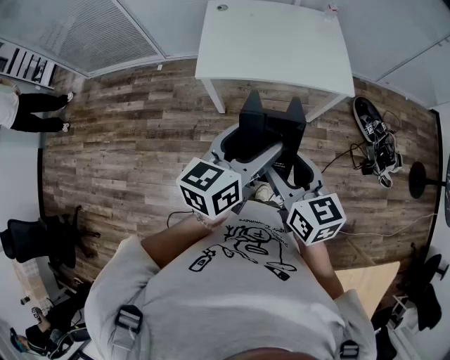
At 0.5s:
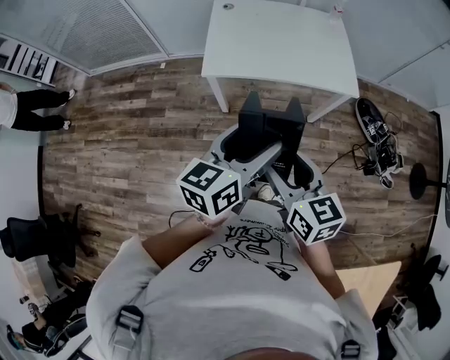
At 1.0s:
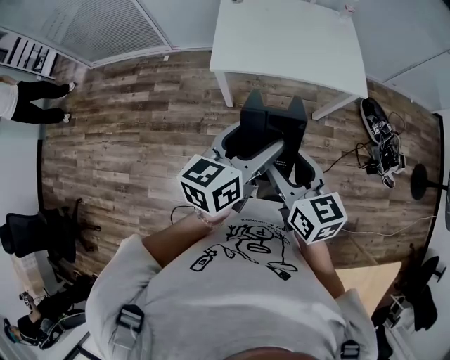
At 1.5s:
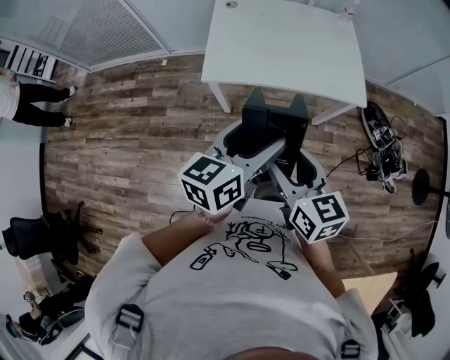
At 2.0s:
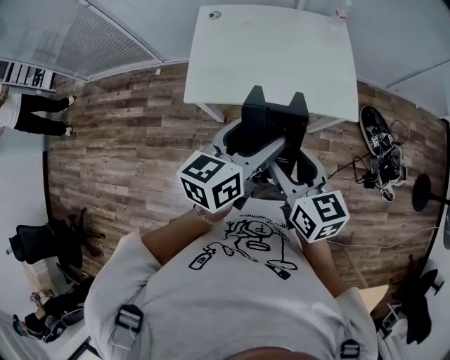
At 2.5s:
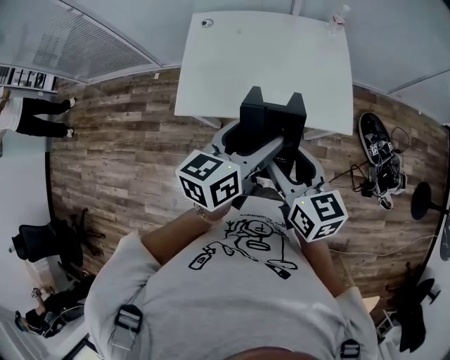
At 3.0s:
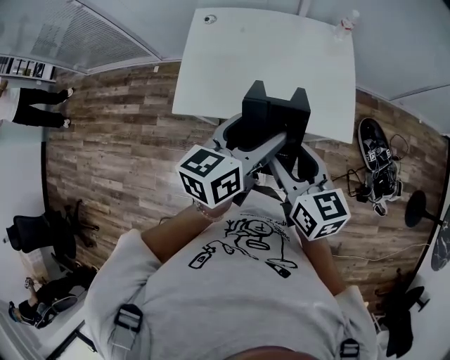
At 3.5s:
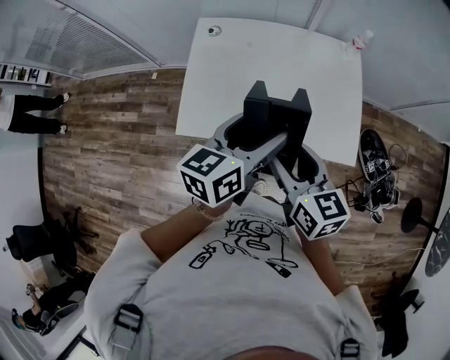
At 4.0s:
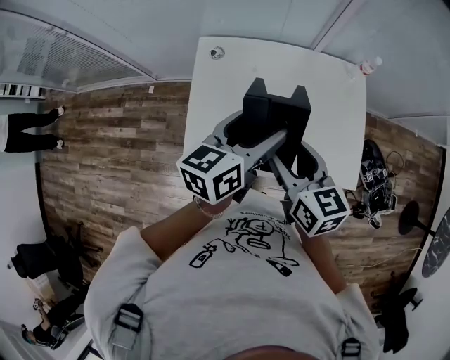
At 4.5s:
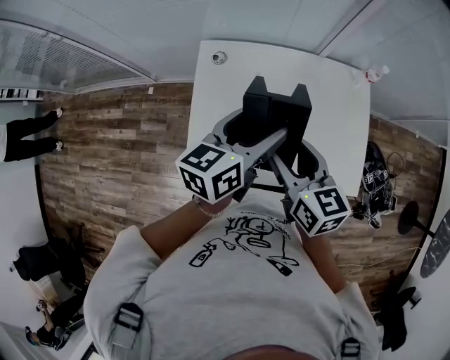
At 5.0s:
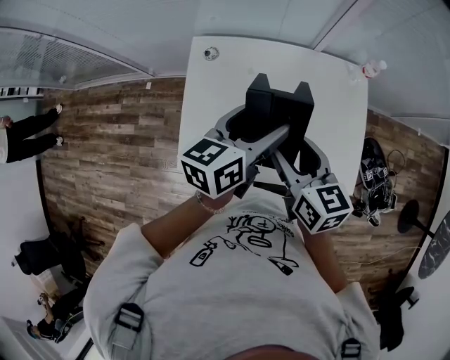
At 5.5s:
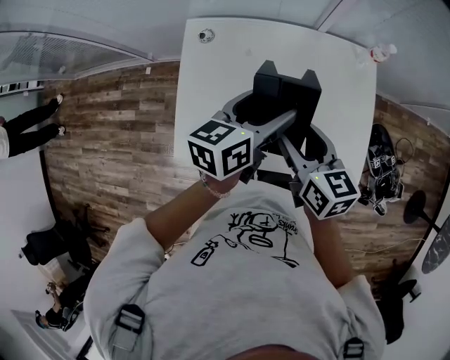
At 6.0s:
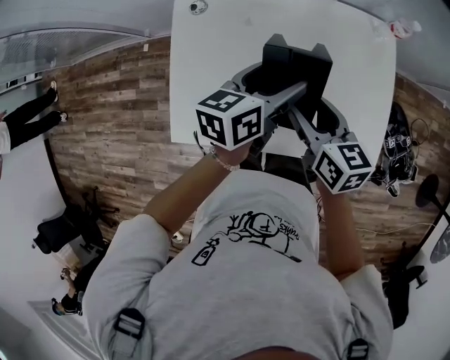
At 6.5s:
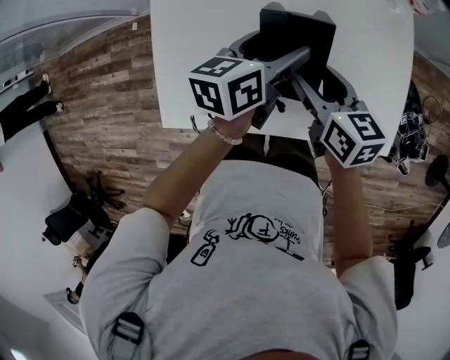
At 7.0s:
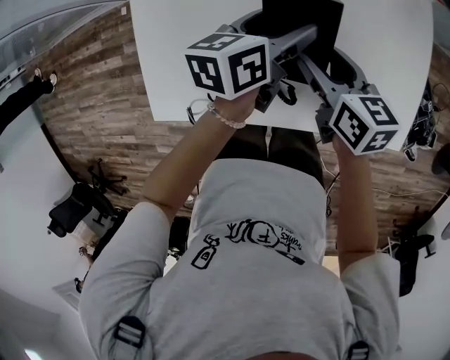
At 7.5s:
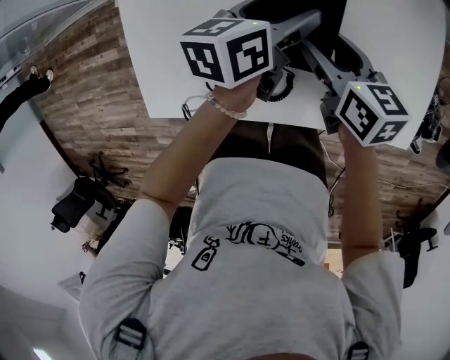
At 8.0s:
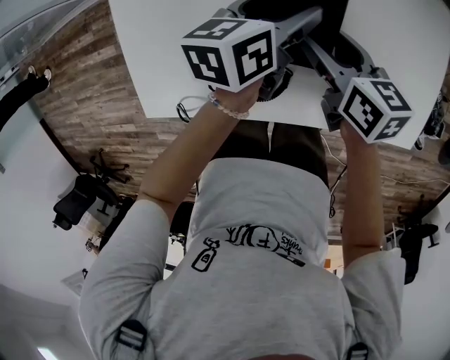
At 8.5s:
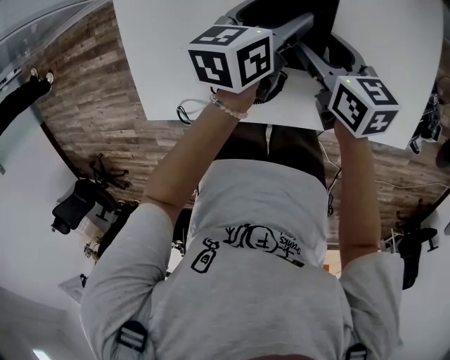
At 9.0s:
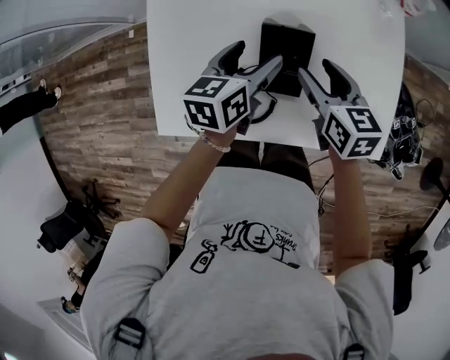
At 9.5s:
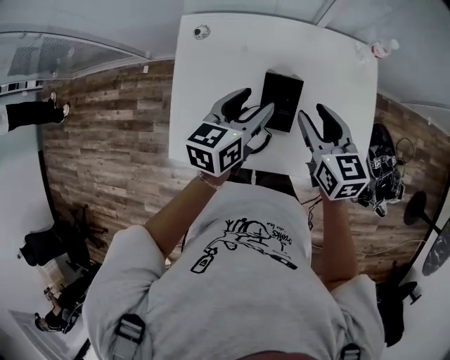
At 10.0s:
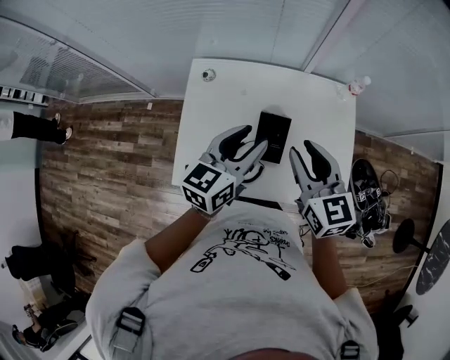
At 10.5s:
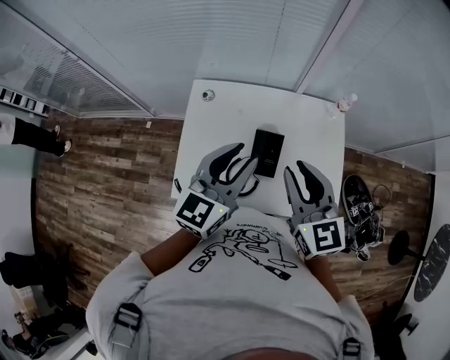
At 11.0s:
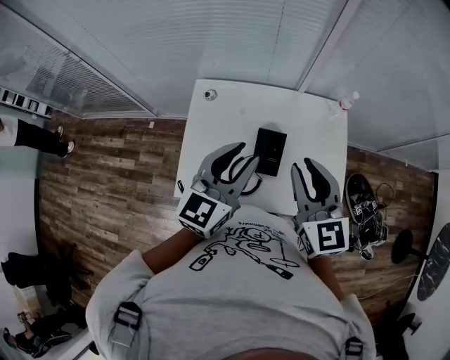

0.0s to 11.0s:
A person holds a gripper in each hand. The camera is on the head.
0.0s to 2.0s: The grippers both shift forward by some 20 cm.
2.0s to 3.5s: Both grippers move forward, some 20 cm.
3.5s to 5.5s: Both grippers move forward, some 20 cm.
5.5s to 7.5s: Both grippers travel together downward, some 25 cm.
7.5s to 9.0s: Both grippers move upward, roughly 10 cm.
9.0s to 11.0s: Both grippers travel together upward, roughly 30 cm. The right gripper rotates approximately 40 degrees, and closes its fingers. Meanwhile the left gripper turns by about 40 degrees, and closes.

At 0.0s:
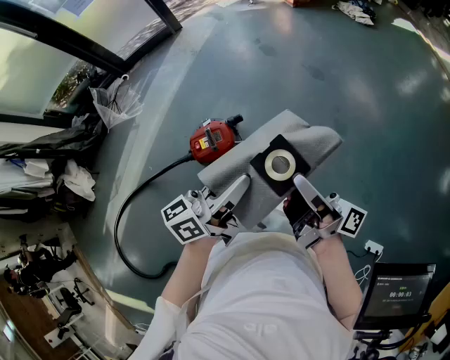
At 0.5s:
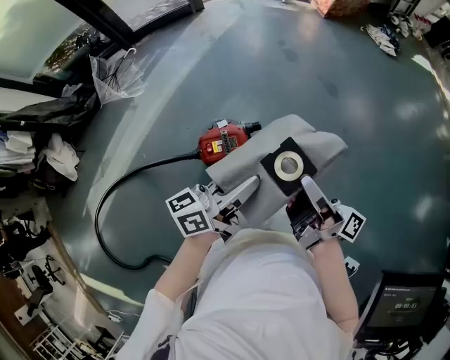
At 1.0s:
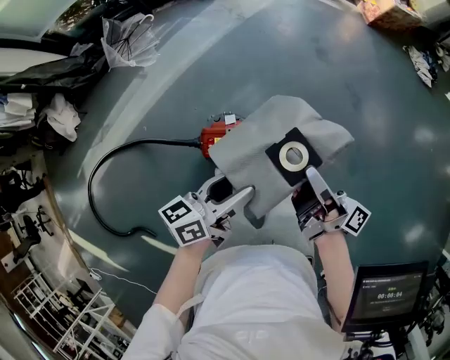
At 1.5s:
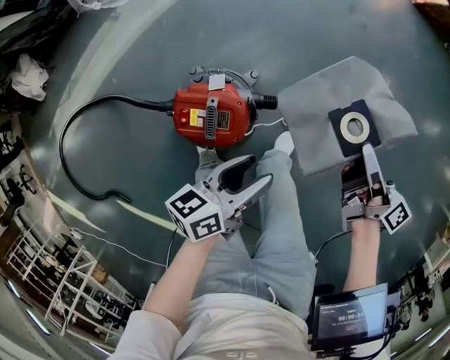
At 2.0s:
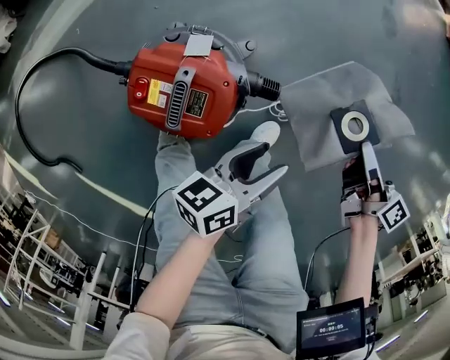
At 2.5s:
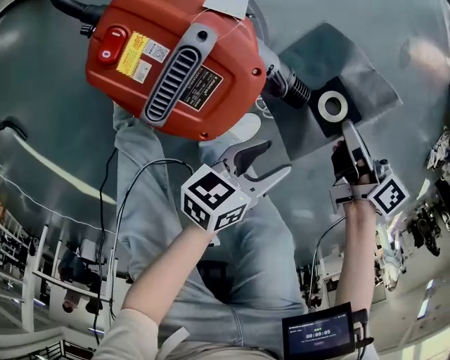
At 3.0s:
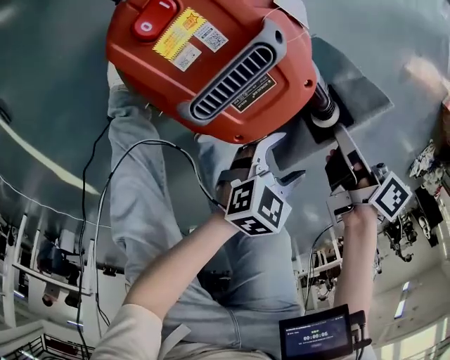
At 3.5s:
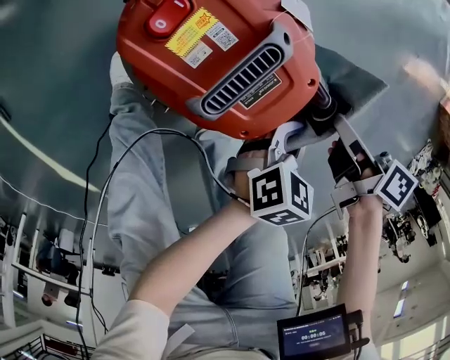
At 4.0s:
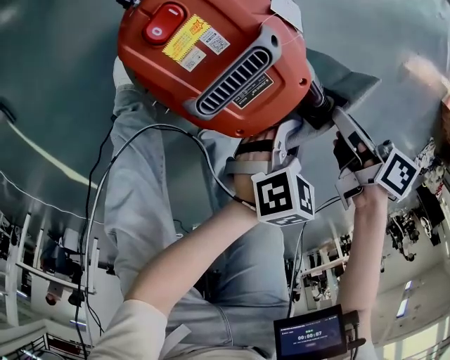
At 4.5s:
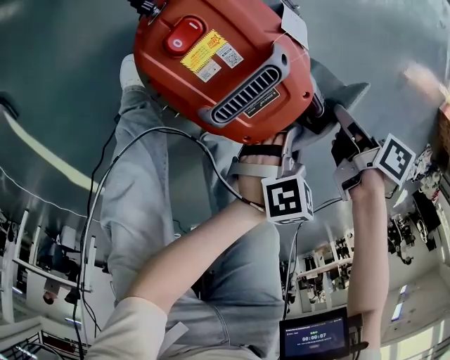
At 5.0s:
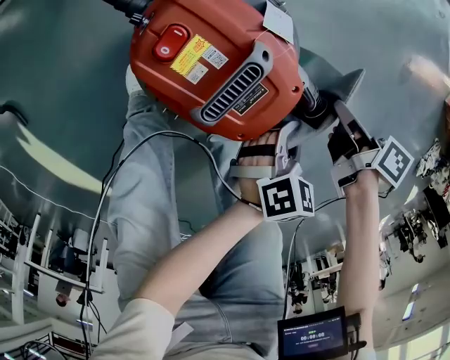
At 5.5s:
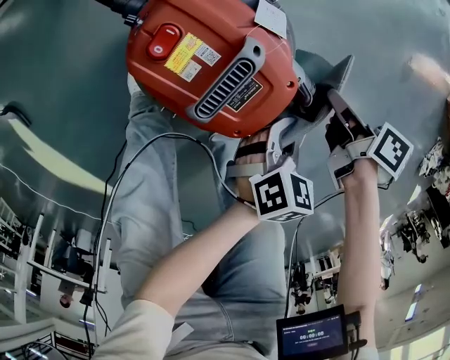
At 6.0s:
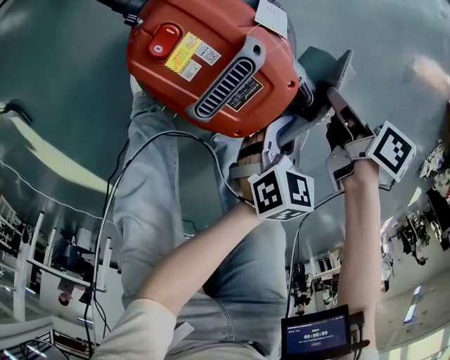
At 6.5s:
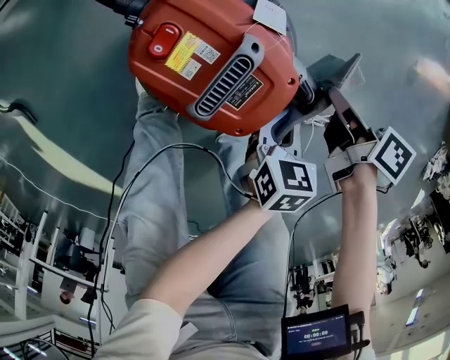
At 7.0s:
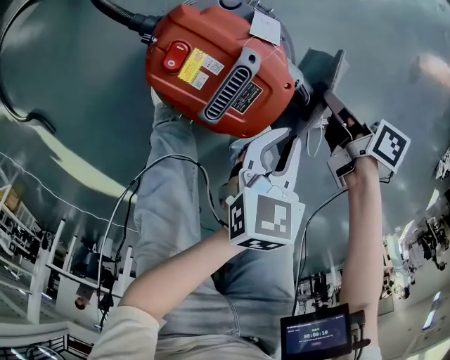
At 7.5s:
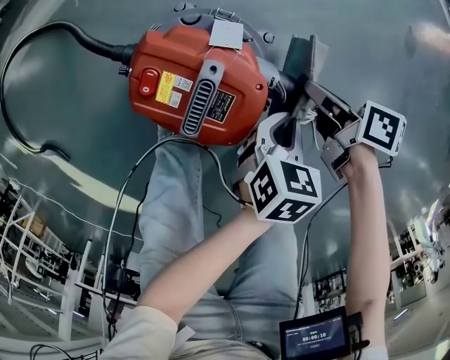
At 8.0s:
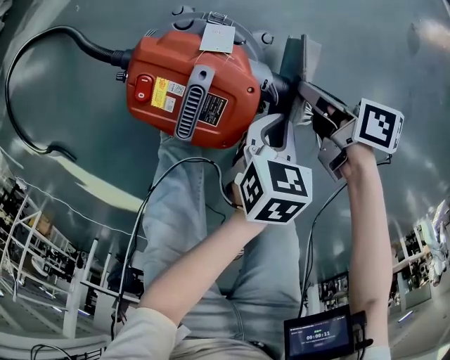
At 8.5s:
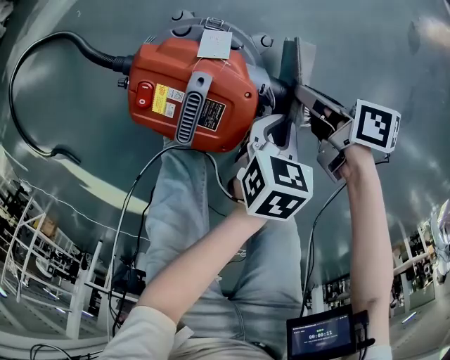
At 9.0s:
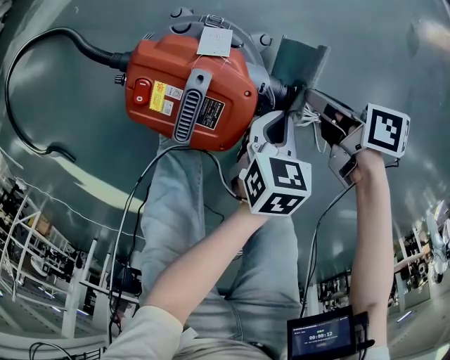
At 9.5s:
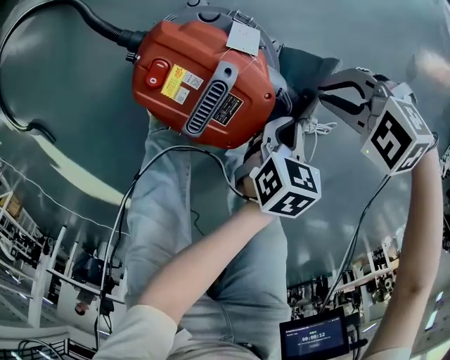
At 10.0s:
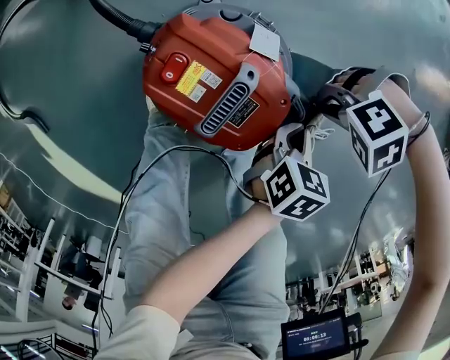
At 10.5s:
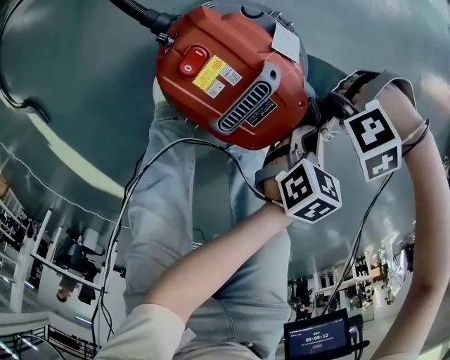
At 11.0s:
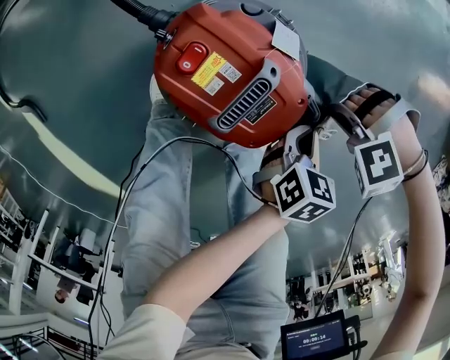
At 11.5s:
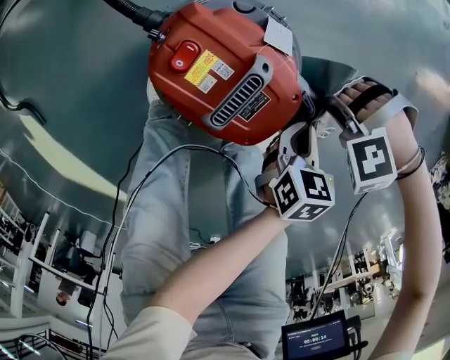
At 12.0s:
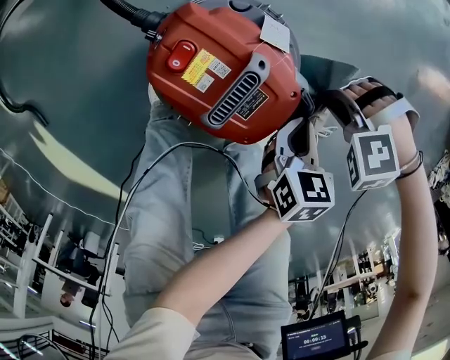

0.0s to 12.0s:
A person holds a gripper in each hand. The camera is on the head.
0.0s to 2.0s: The left gripper heads downward, covering some 60 cm, rotates approximately 40 degrees, and opens up.
2.0s to 4.0s: The left gripper heads downward, covering roughly 15 cm, angles its fingers downward, by some 30 degrees, and closes up.
6.0s to 8.0s: The left gripper reaches approximately 10 cm upward, then returns.

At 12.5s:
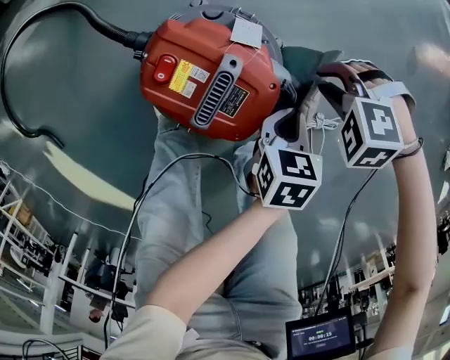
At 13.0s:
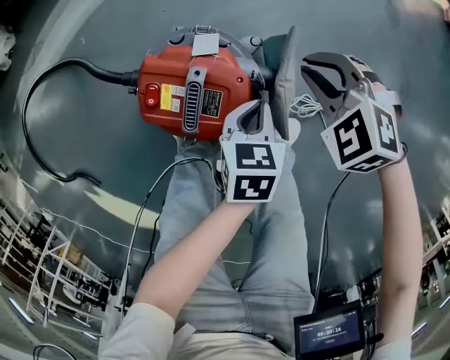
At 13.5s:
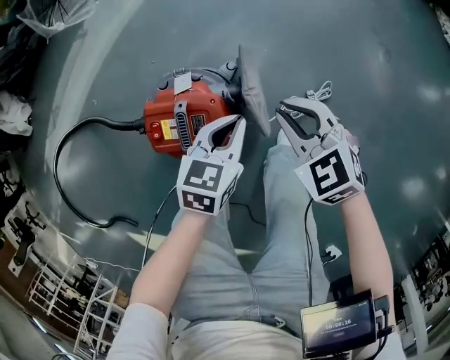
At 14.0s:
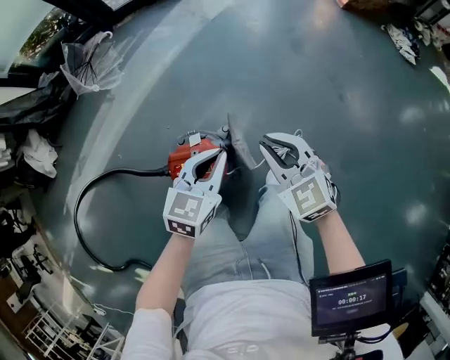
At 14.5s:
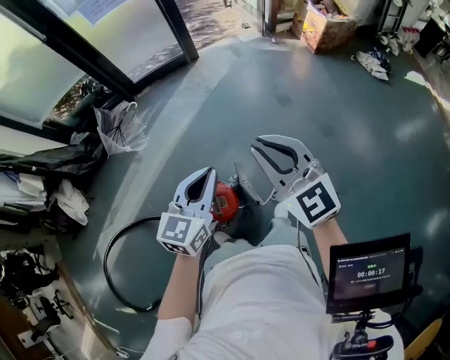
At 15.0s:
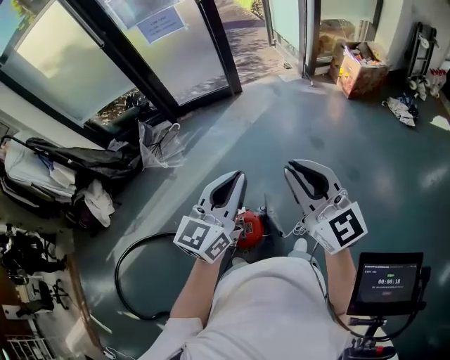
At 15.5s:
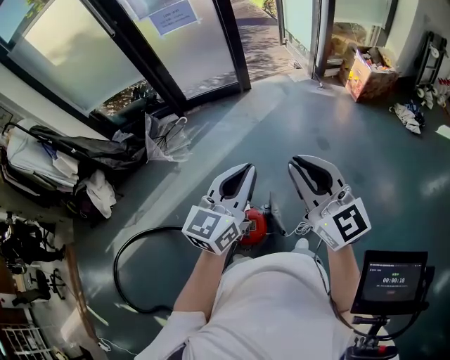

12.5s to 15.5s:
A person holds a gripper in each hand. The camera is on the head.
12.5s to 14.0s: The left gripper is displaced upward by some 40 cm, and twists approximately 50 degrees clockwise, seen from behind.
14.0s to 15.5s: The left gripper moves upward, roughly 40 cm, and changes its angle by about 30 degrees.

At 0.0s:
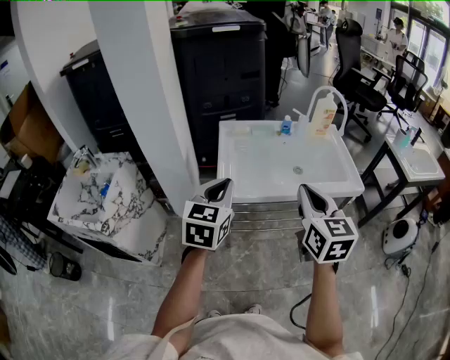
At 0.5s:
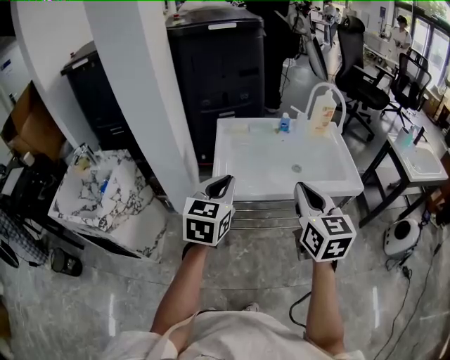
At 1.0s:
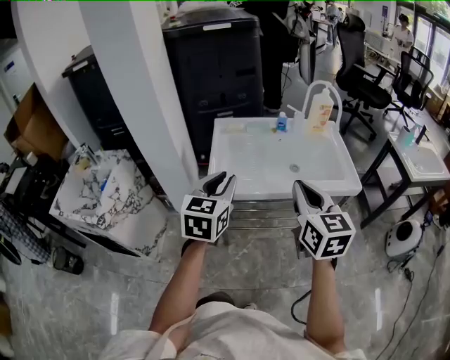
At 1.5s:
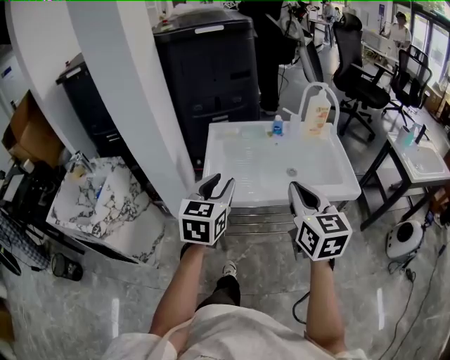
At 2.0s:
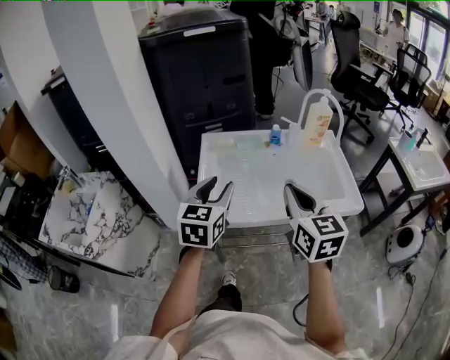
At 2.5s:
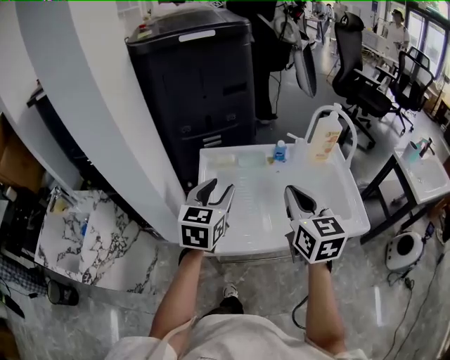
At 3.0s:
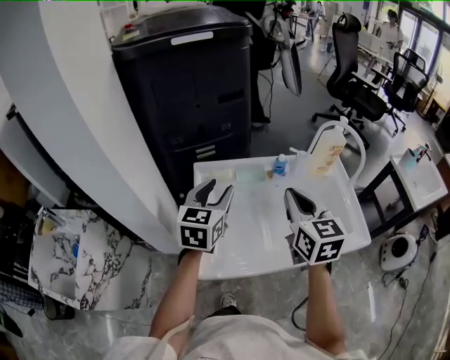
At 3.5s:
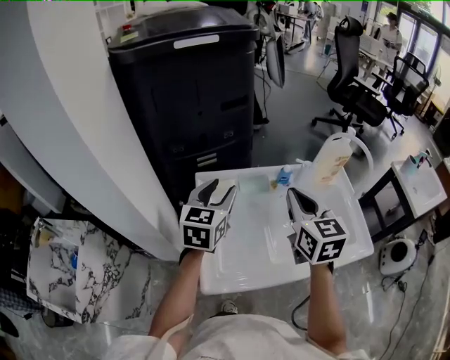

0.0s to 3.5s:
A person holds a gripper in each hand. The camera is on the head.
0.0s to 2.0s: The right gripper heads forward, covering about 10 cm, while the left gripper heads forward and to the right, covering approximately 15 cm, and opens up.
2.0s to 3.5s: The grippers both shift forward by about 25 cm.
